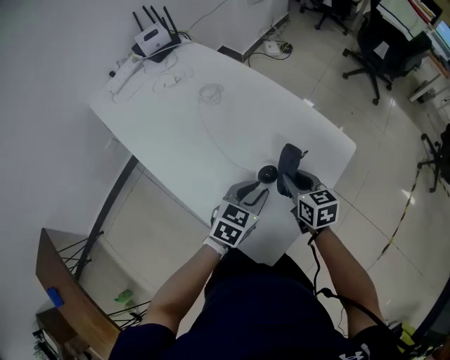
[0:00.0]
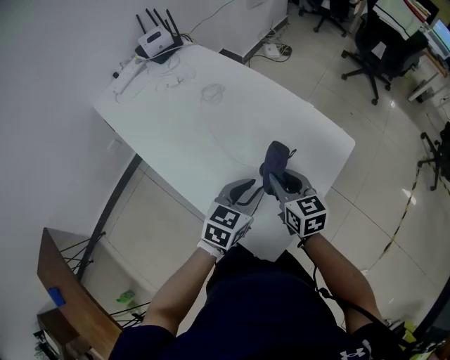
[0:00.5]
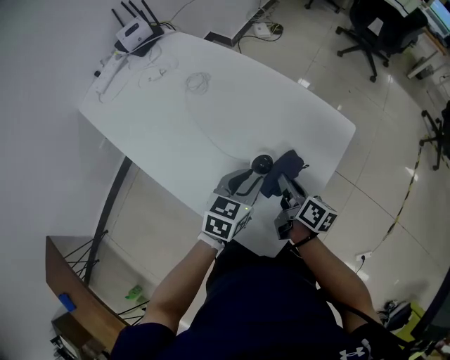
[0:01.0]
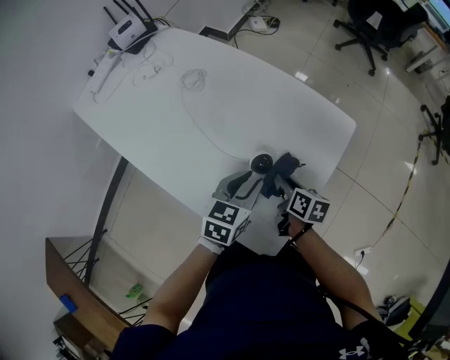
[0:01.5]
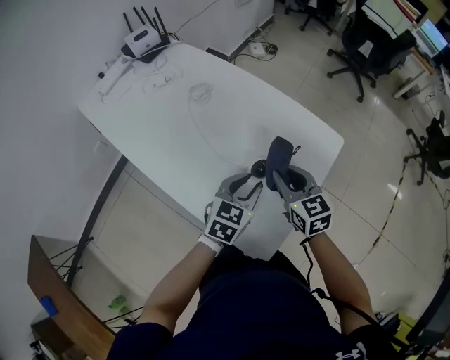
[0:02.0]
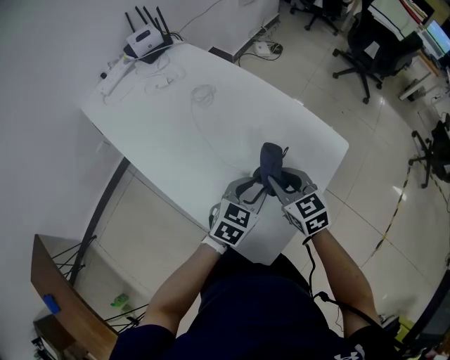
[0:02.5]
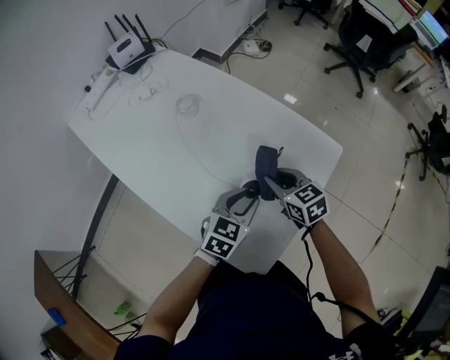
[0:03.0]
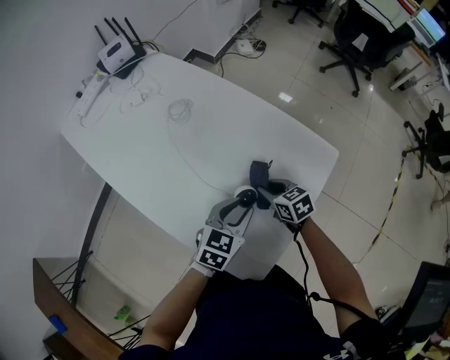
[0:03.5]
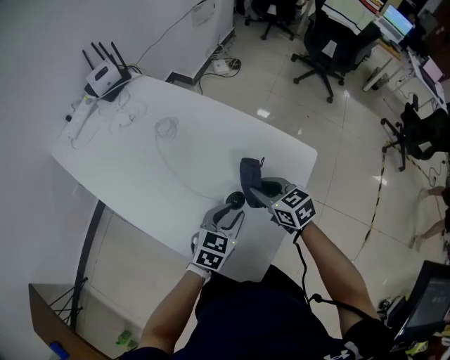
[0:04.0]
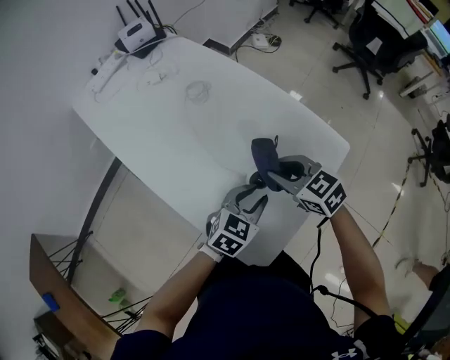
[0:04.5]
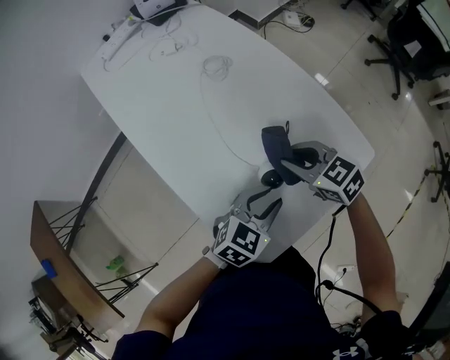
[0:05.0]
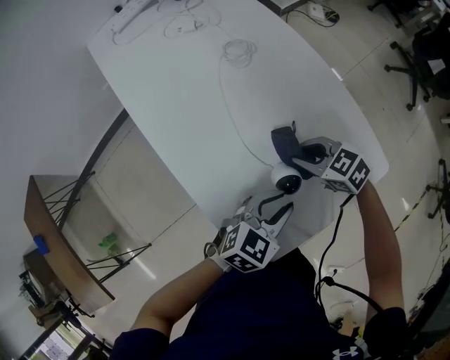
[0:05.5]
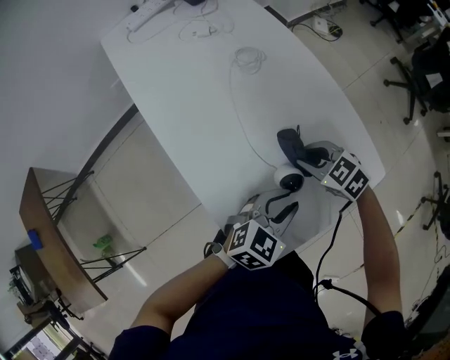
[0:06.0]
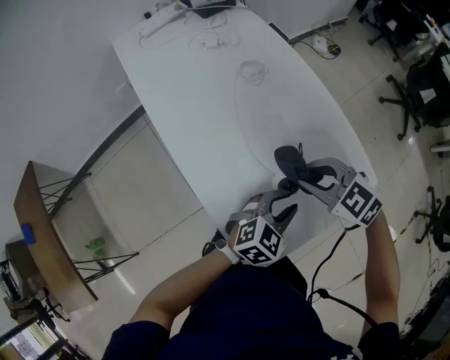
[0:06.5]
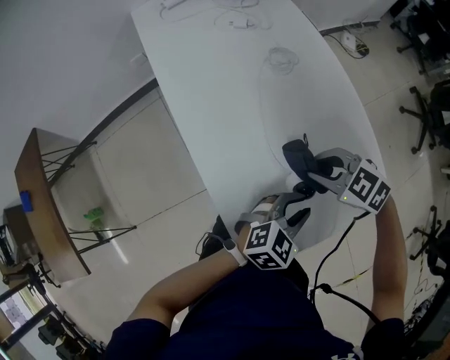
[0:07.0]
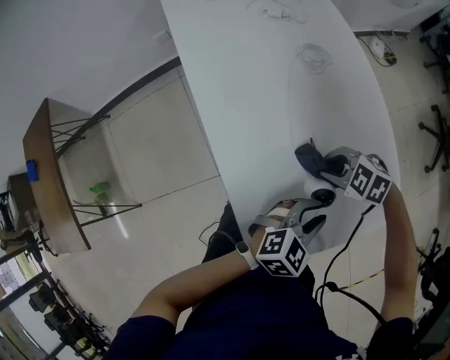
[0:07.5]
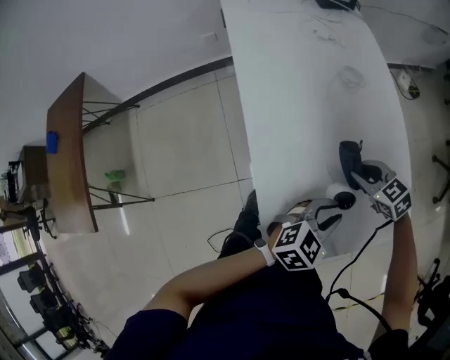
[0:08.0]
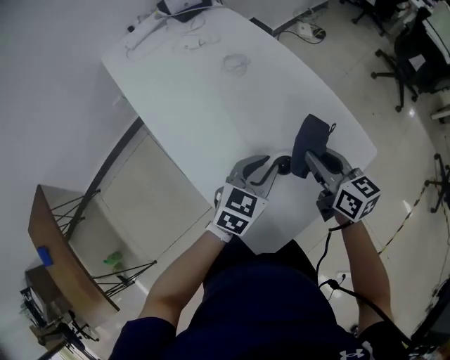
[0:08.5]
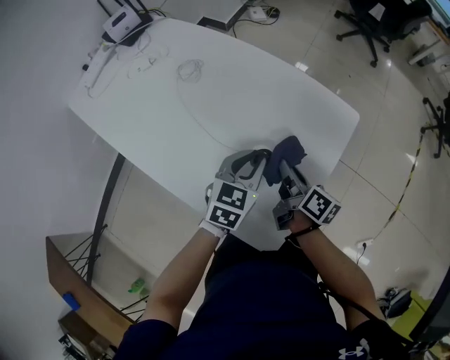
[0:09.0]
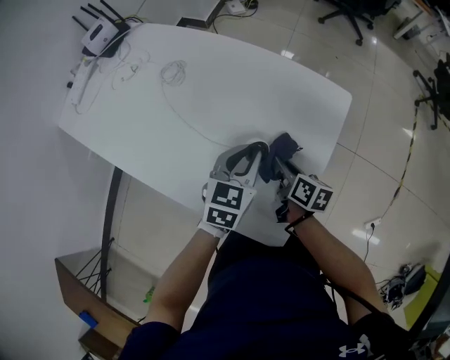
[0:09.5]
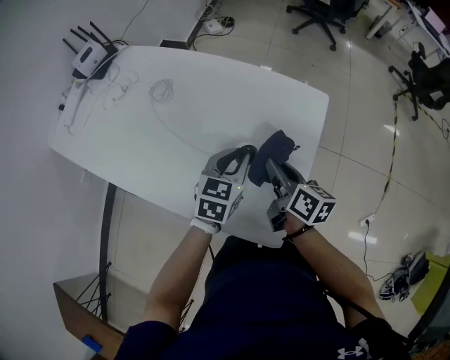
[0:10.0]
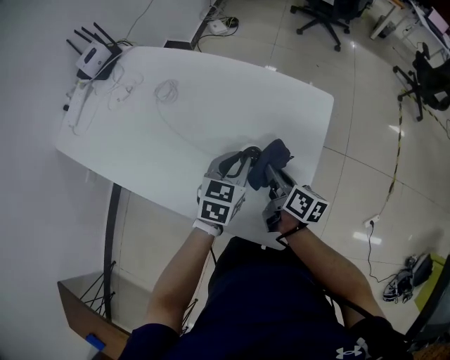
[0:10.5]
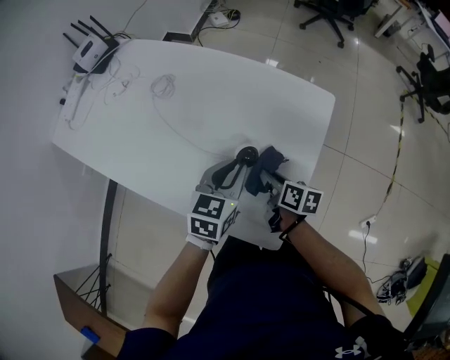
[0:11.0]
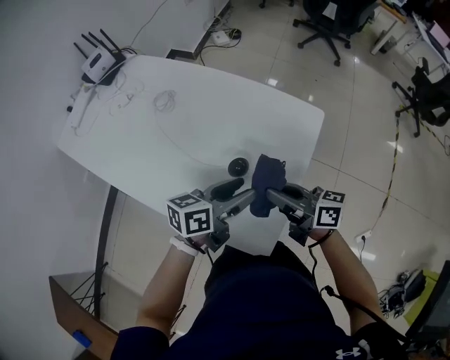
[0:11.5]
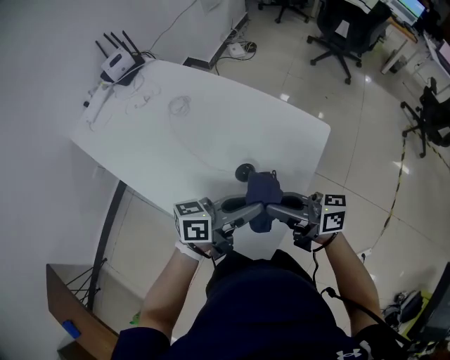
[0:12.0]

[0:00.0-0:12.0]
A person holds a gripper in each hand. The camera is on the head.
0:00.0 to 0:02.0: The right gripper goes up and down, roughly 15 cm each way, reversing 2 times.
0:02.0 to 0:04.0: The right gripper reaches roughly 15 cm downward, then returns.
0:04.0 to 0:06.0: The right gripper moves about 10 cm, and turns by about 50 degrees.
0:06.0 to 0:08.0: The right gripper goes upward and returns, about 10 cm each way.
0:08.0 to 0:10.0: The left gripper moves some 5 cm, and rotates approximately 20 degrees. Meanwhile the right gripper swings up and down, about 15 cm each way, with 2 reversals, and swivels some 110 degrees.
0:10.0 to 0:12.0: The grippers both shift upward by some 10 cm. The left gripper angles its fingers upward, by approximately 30 degrees, and opens, then closes once more; the right gripper changes its angle by some 50 degrees.

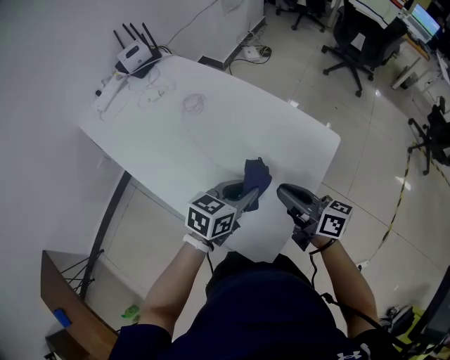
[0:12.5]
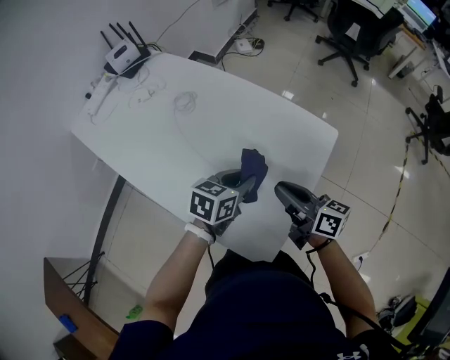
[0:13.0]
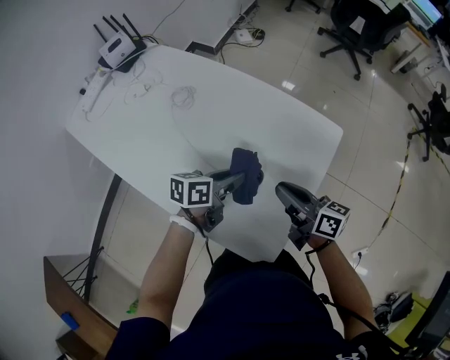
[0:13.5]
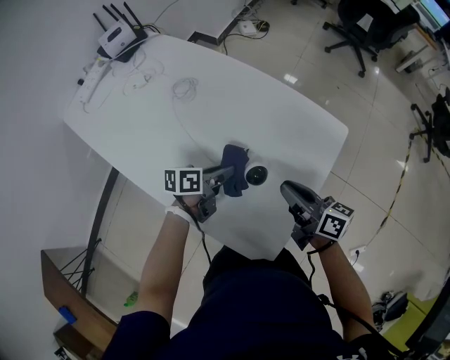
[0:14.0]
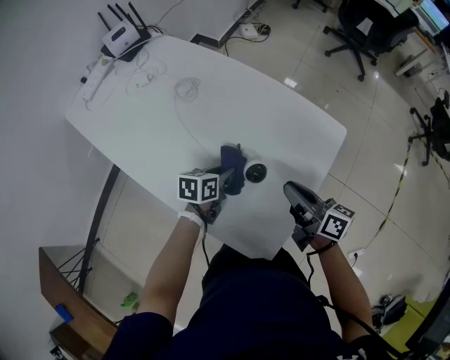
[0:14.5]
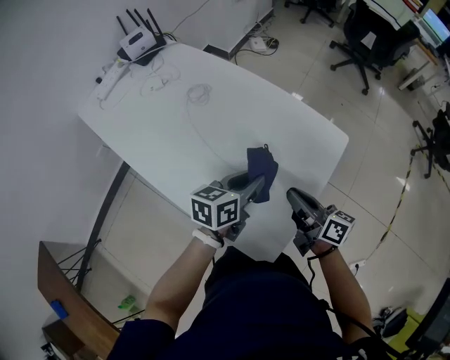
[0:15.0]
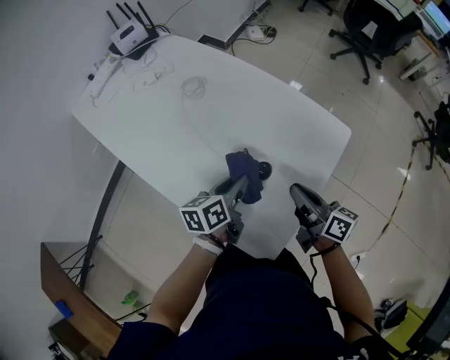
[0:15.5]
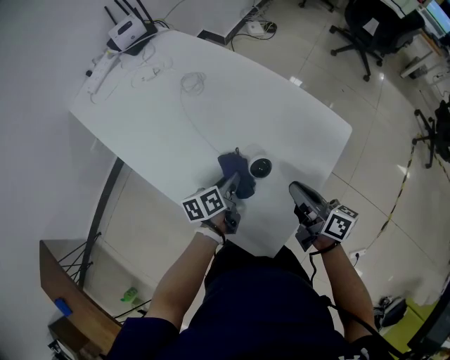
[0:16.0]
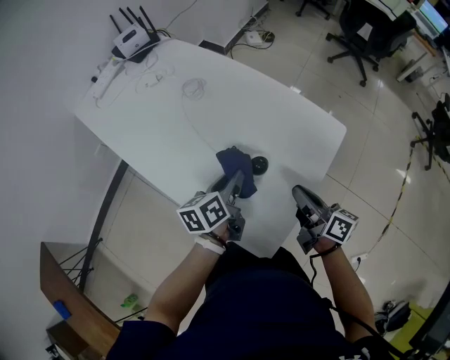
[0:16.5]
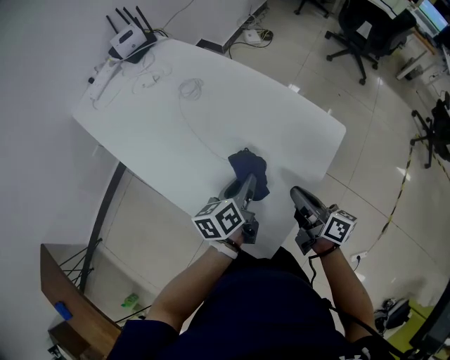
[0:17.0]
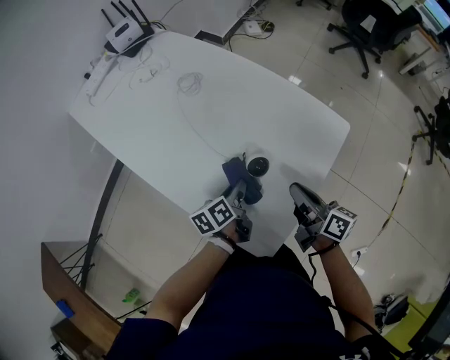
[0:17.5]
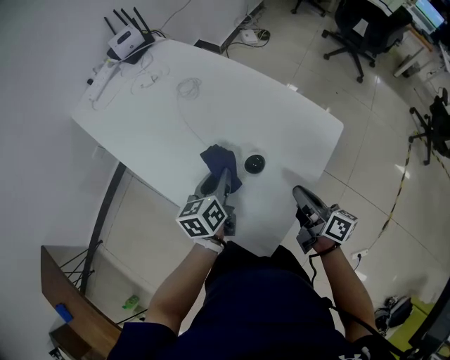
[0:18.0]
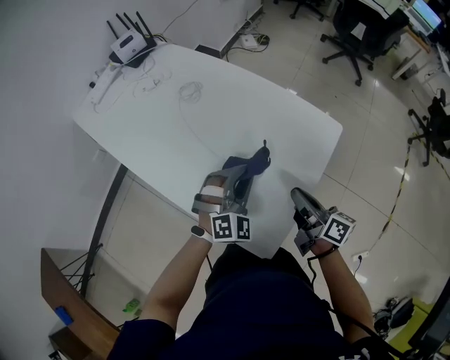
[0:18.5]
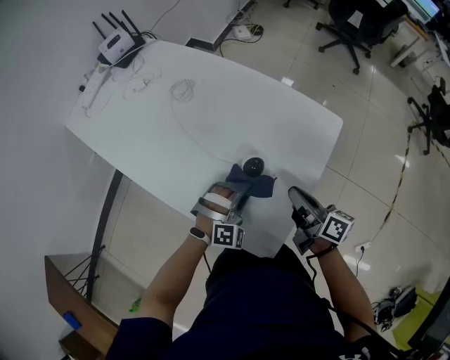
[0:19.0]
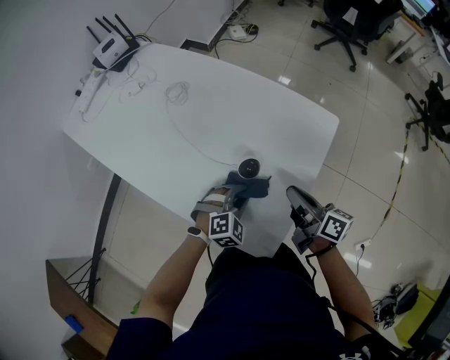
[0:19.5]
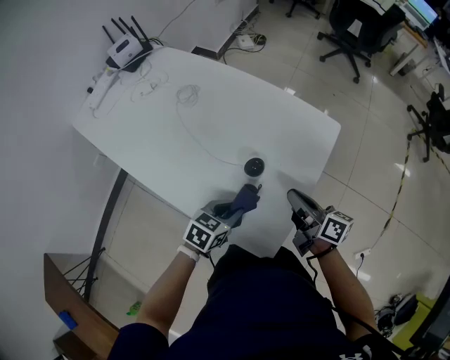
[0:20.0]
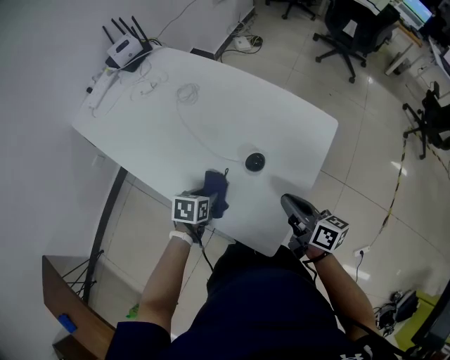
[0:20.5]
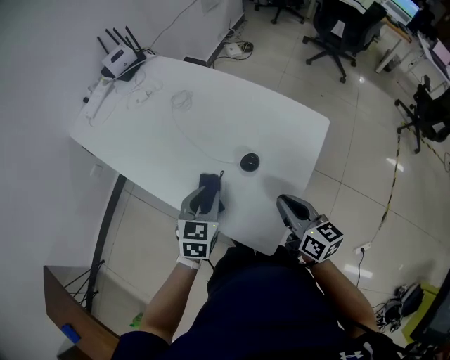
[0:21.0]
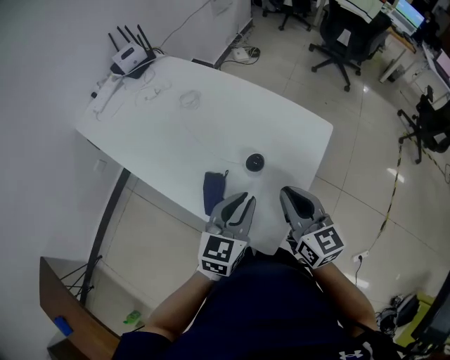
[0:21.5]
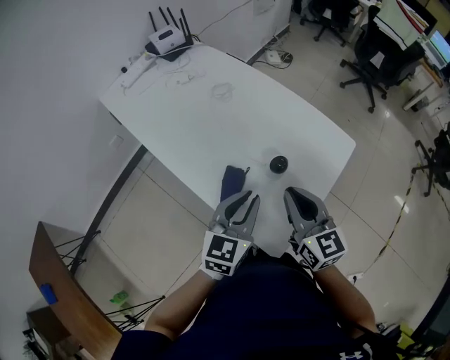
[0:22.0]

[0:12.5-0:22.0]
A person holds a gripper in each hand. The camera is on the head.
0:12.5 to 0:14.5: The right gripper goes approximately 5 cm downward, while the left gripper travels downward and to the left by roughly 15 cm, and swivels approximately 20 degrees.
0:14.5 to 0:16.5: The left gripper moves up and down over approximately 15 cm, changing direction 2 times, and swivels about 30 degrees.
0:16.5 to 0:18.0: The left gripper reaches approximately 10 cm downward, then returns.
0:18.0 to 0:20.0: The left gripper heads backward, downward and to the right, covering approximately 15 cm, and rotates some 50 degrees.
0:20.0 to 0:22.0: The right gripper moves upward and to the left, roughly 15 cm, and rolls counterclockwise, seen from behind, by some 50 degrees, while the left gripper heads upward, covering about 15 cm, and rotates some 40 degrees.

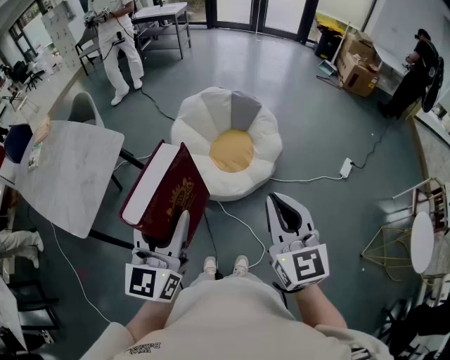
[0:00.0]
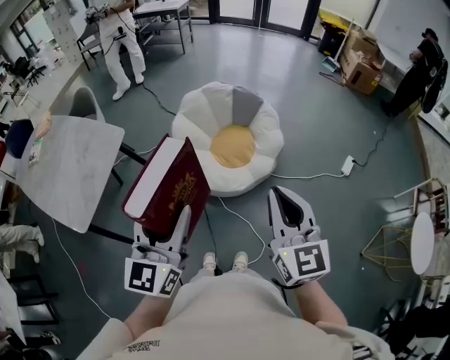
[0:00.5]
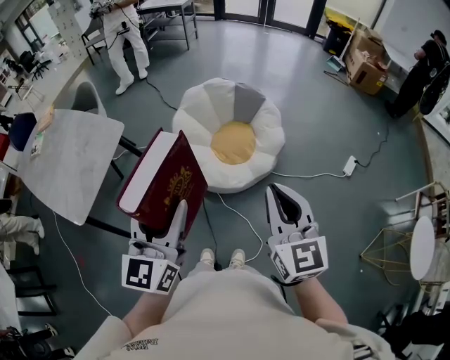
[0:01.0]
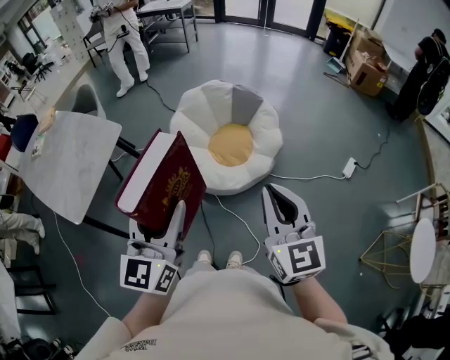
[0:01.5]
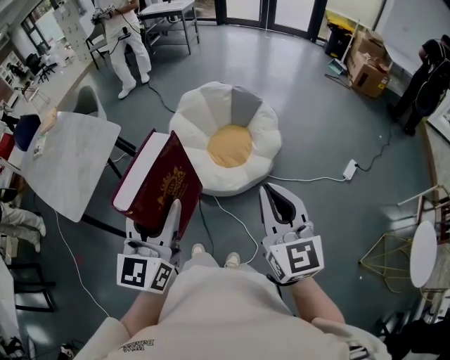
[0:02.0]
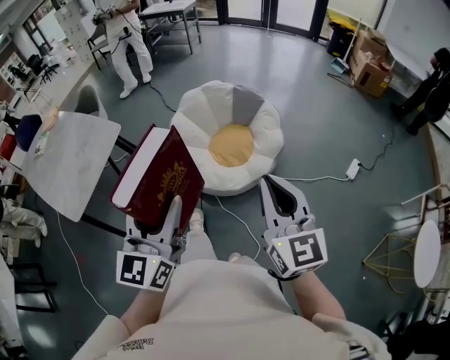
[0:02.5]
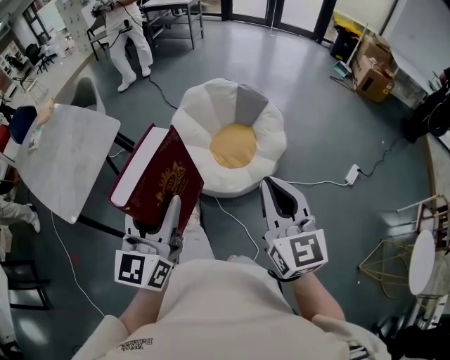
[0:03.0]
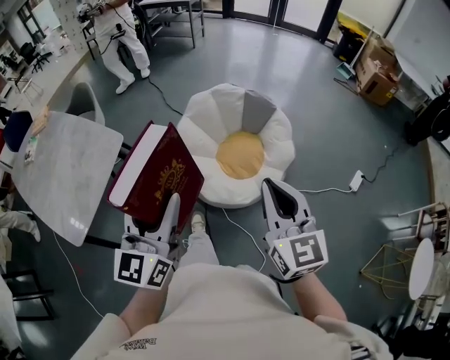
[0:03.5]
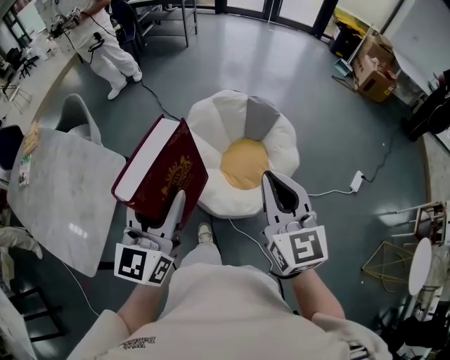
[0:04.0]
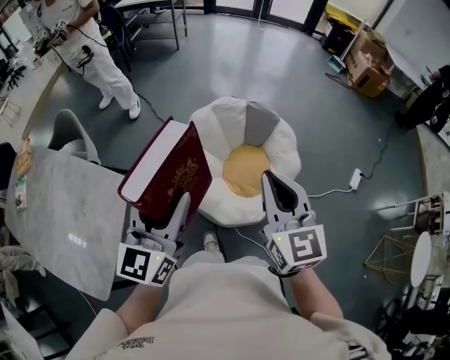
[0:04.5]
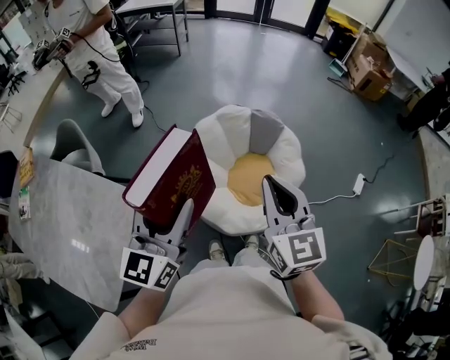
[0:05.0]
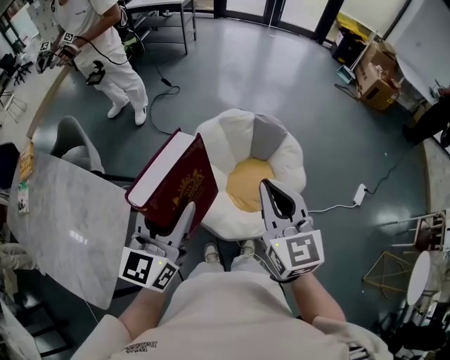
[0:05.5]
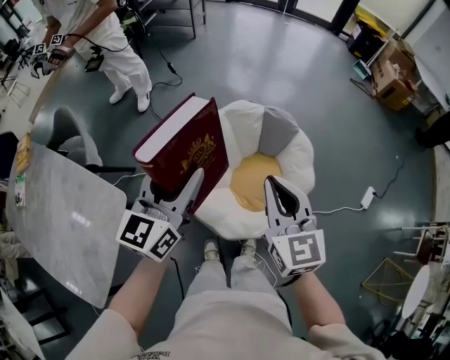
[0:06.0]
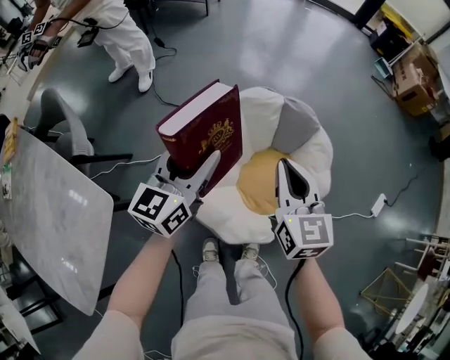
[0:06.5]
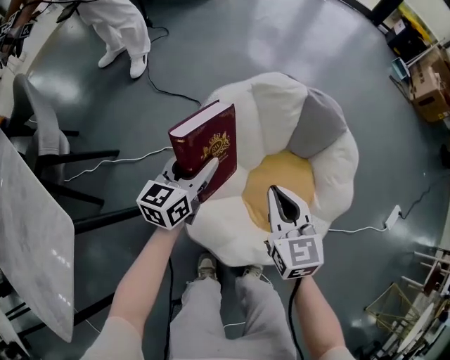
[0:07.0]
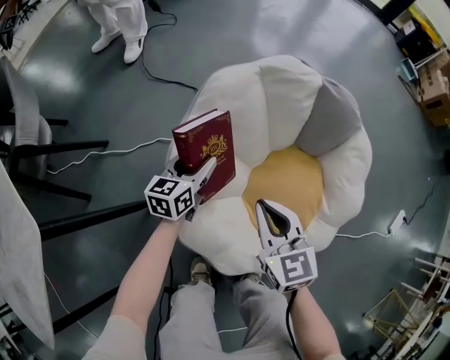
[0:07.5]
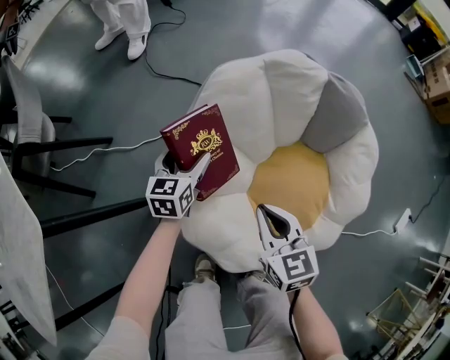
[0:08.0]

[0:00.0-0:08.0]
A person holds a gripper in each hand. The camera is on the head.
0:00.0 to 0:02.0: The grippers both shift to the right by approximately 10 cm.
0:02.0 to 0:04.0: The two grippers go about 35 cm forward and to the left.
0:04.0 to 0:06.0: Both grippers move forward, roughly 25 cm.
0:06.0 to 0:08.0: The two grippers go about 60 cm downward. The left gripper rotates approximately 30 degrees. The right gripper swivels about 30 degrees.
